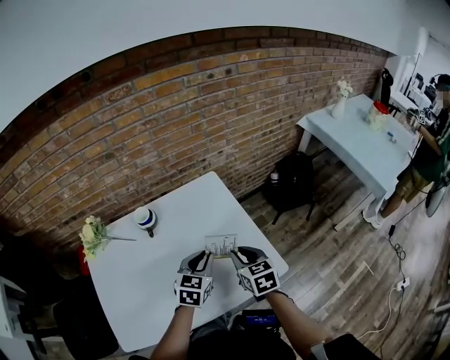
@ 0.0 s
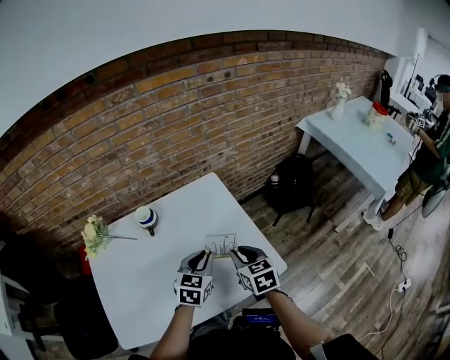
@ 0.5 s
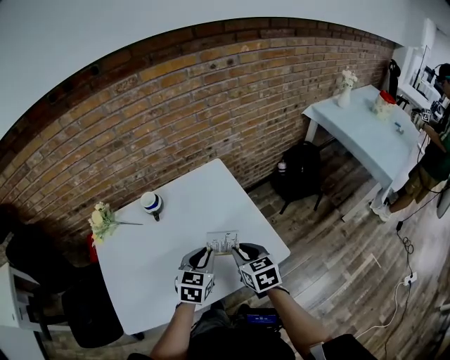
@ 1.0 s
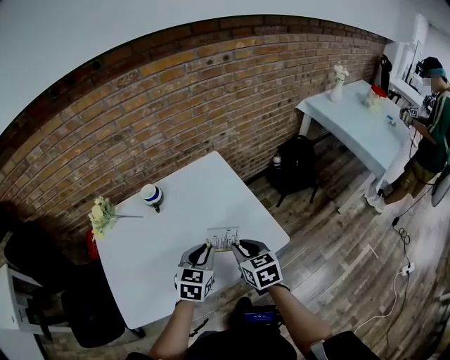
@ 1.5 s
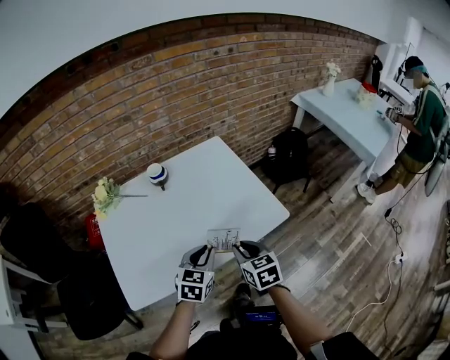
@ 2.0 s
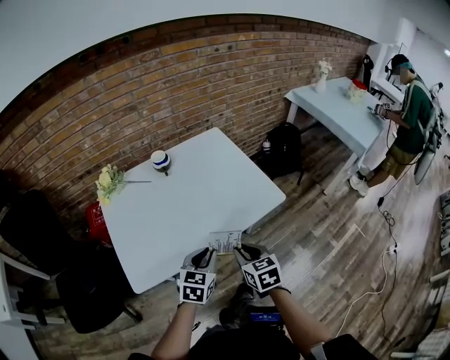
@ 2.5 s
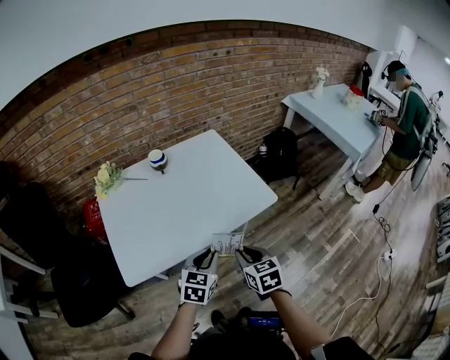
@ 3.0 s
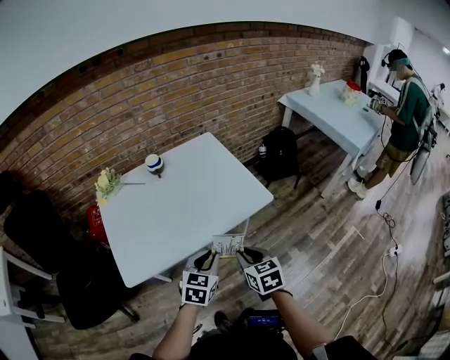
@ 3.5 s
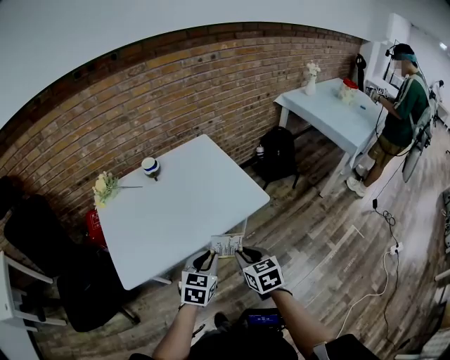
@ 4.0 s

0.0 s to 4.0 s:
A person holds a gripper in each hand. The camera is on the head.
0.0 to 2.0 s: The grippers both shift backward by some 20 cm.
2.0 to 4.0 s: Both grippers move backward and to the right, roughly 15 cm.

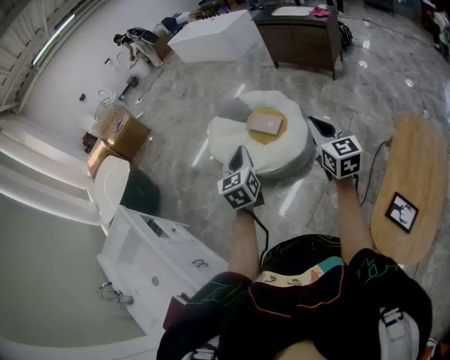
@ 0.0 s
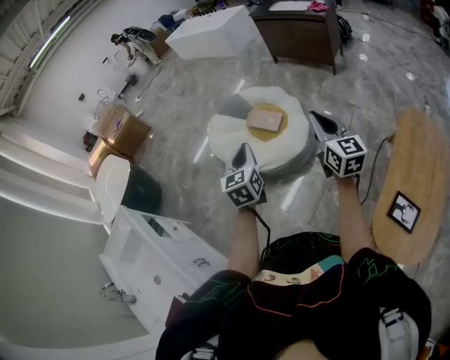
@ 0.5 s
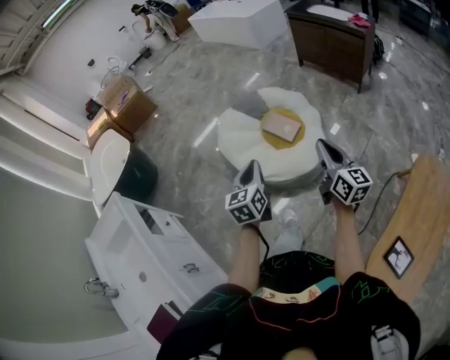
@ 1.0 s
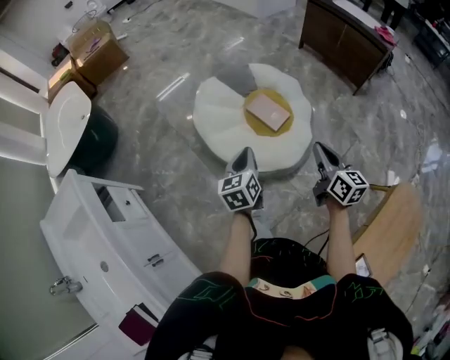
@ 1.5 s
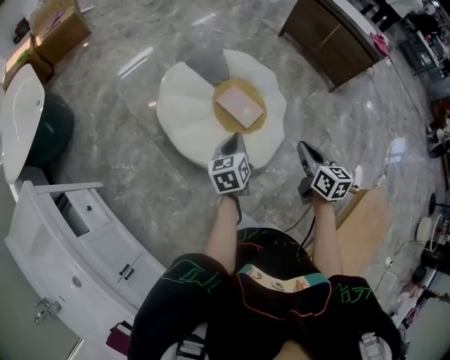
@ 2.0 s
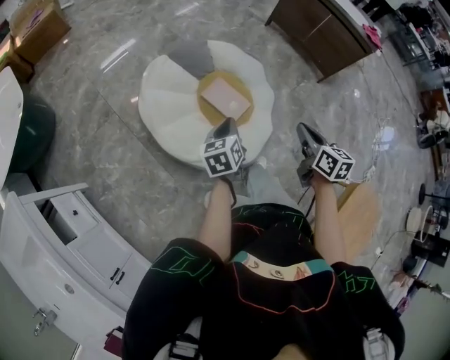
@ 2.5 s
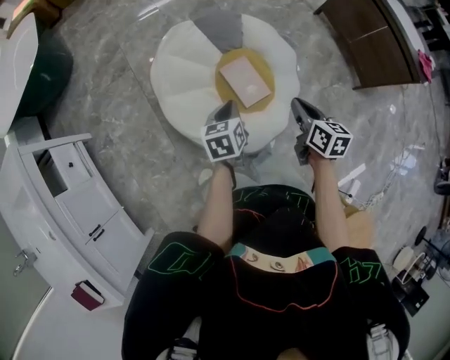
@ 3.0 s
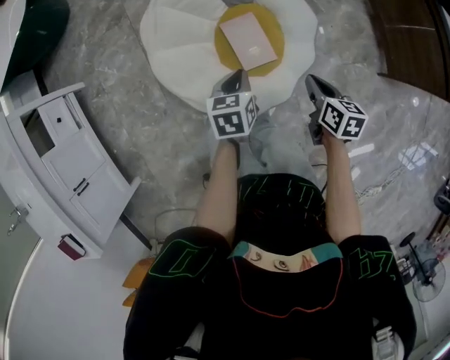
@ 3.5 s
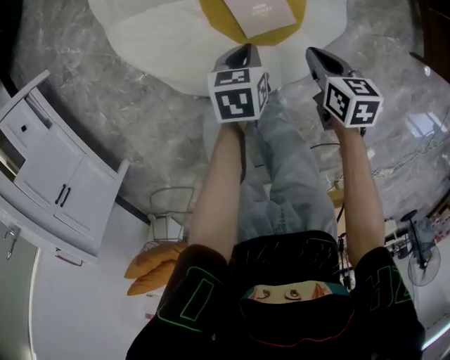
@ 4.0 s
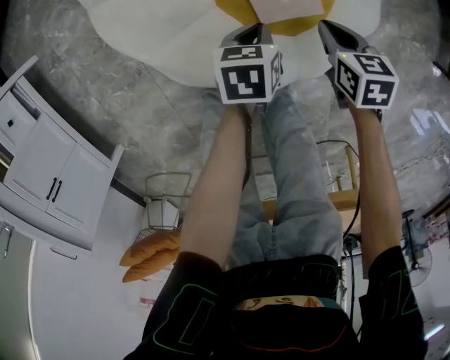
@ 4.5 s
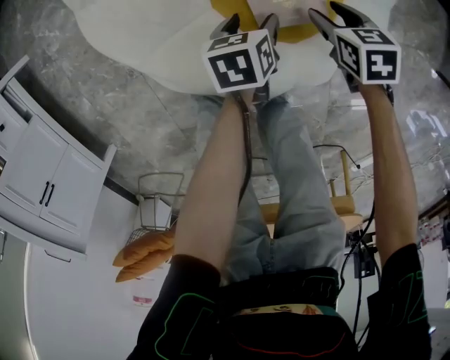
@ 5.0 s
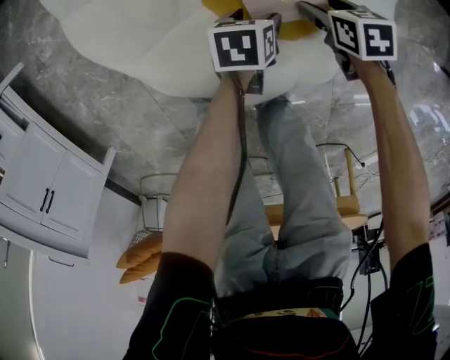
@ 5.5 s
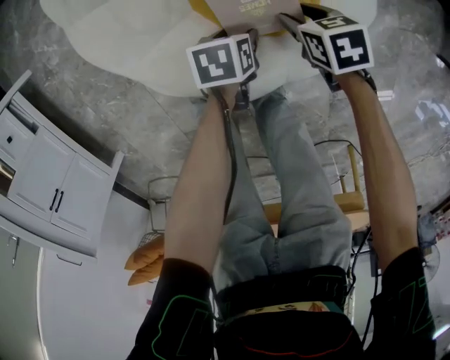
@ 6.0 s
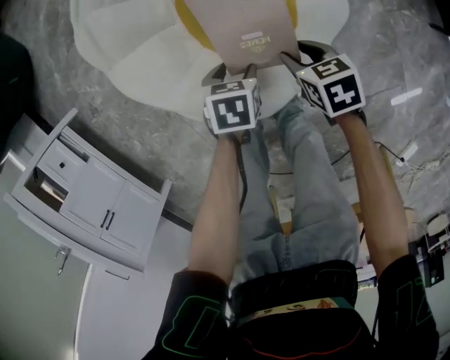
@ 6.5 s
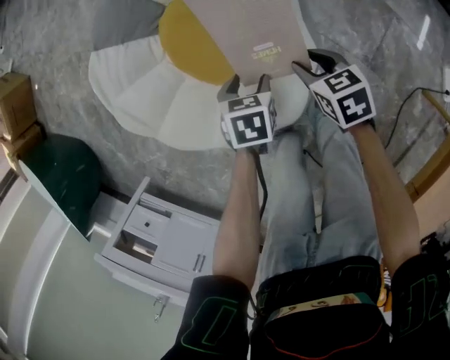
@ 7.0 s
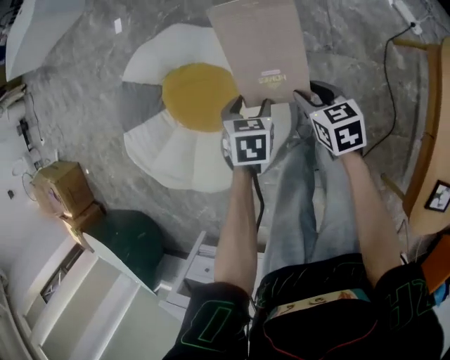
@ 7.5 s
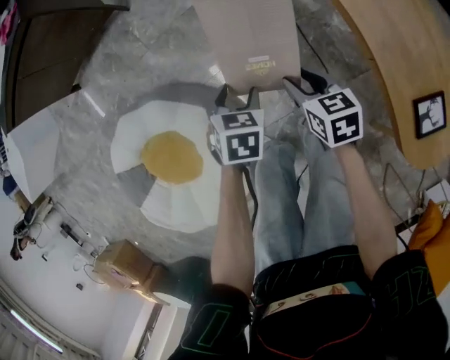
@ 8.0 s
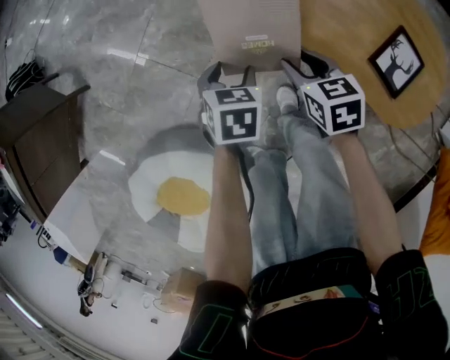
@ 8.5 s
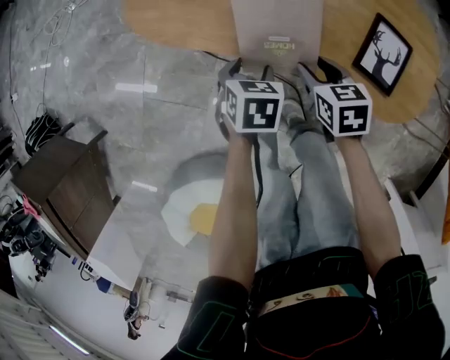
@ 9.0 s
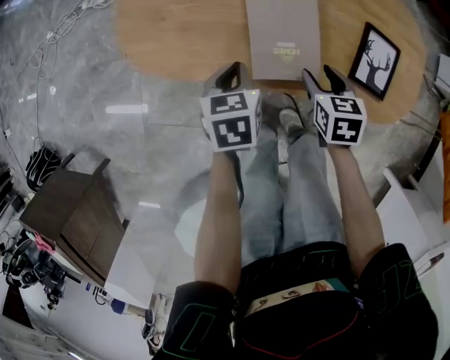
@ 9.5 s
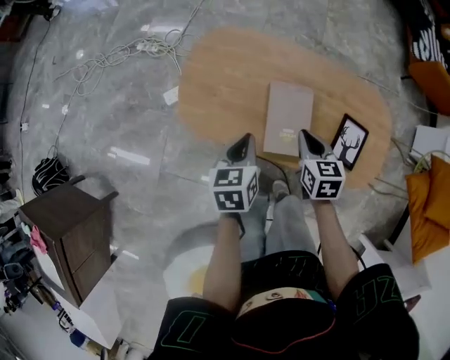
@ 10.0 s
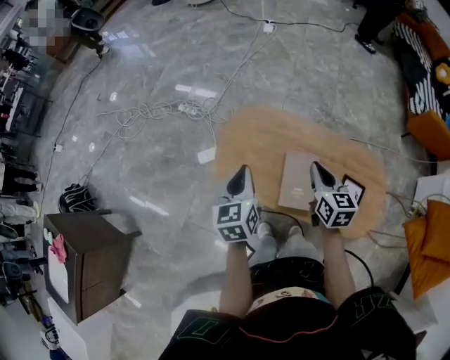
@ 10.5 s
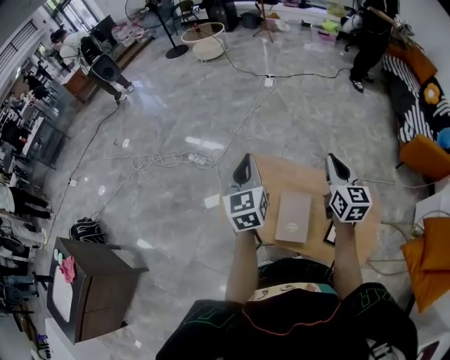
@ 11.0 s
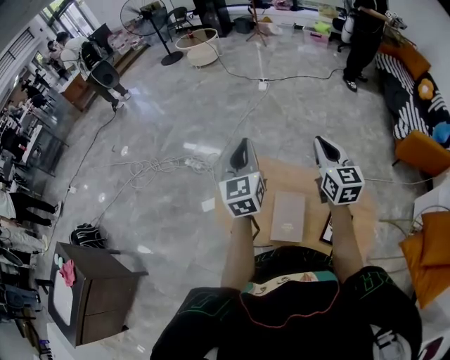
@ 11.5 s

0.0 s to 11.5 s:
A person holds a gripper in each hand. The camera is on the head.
0.0 to 2.0 s: Both grippers travel together forward and downward, about 40 cm. The right gripper changes its angle by approximately 30 degrees, while the left gripper changes its angle by approximately 30 degrees.
2.0 to 4.0 s: The grippers both shift downward by roughly 40 cm. The left gripper changes its angle by some 30 degrees. Meanwhile the right gripper changes its angle by some 40 degrees.
4.0 to 6.0 s: Both grippers travel together downward, roughly 20 cm. The right gripper changes its angle by roughly 20 degrees, and opens its fingers. The left gripper opens its fingers.
6.0 to 7.5 s: The left gripper moves upward, some 25 cm, and twists some 90 degrees clockwise, seen from behind; the right gripper shifts by some 35 cm, and turns by about 80 degrees.
7.5 to 9.5 s: Both grippers are carried about 70 cm. The left gripper turns by roughly 80 degrees, and closes. The right gripper swivels some 100 degrees.
9.5 to 11.5 s: The right gripper heads upward and forward, covering approximately 60 cm, points its fingers about 50 degrees further upward, and closes up, while the left gripper moves upward, some 50 cm, and tips its fingers upward by roughly 50 degrees.

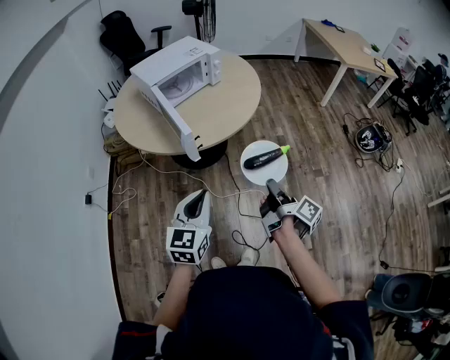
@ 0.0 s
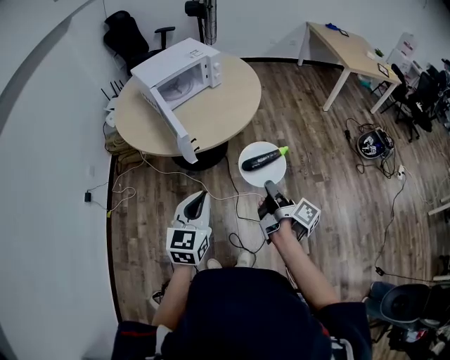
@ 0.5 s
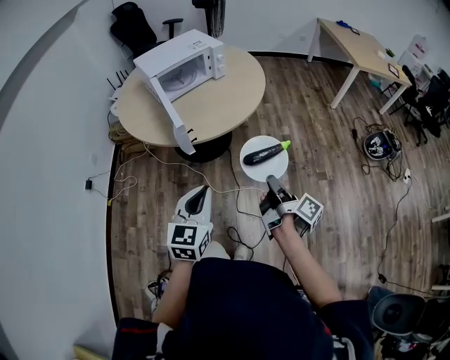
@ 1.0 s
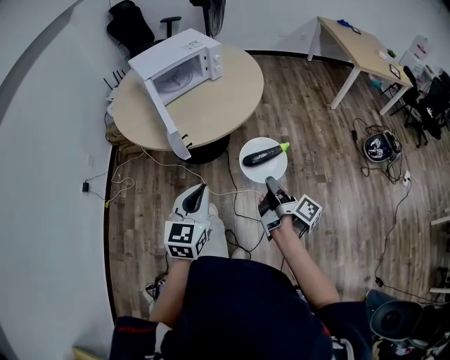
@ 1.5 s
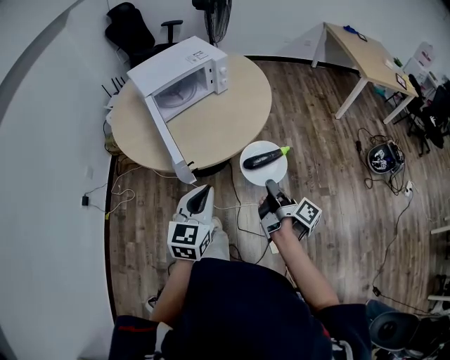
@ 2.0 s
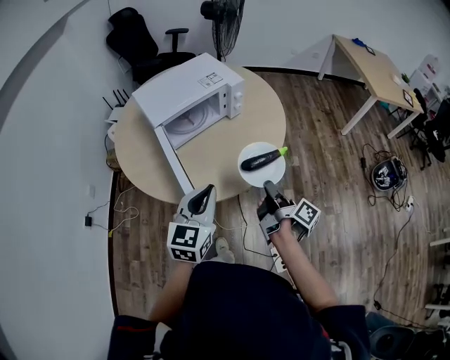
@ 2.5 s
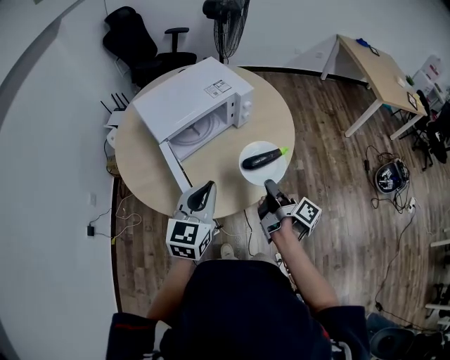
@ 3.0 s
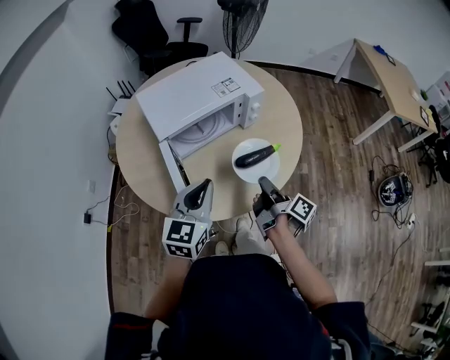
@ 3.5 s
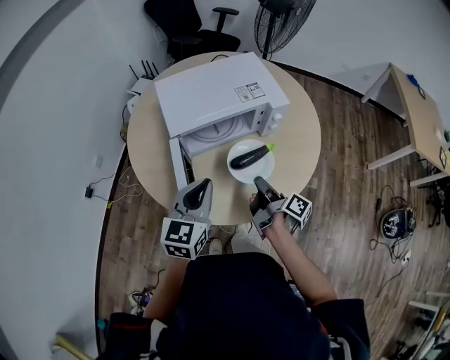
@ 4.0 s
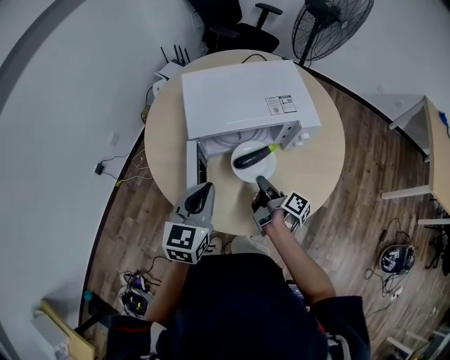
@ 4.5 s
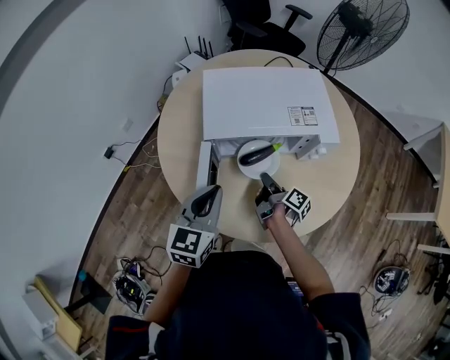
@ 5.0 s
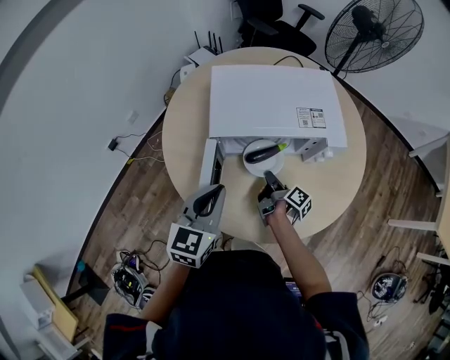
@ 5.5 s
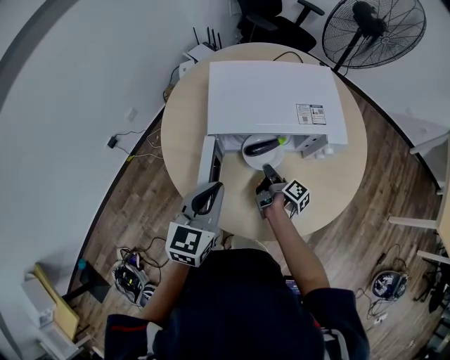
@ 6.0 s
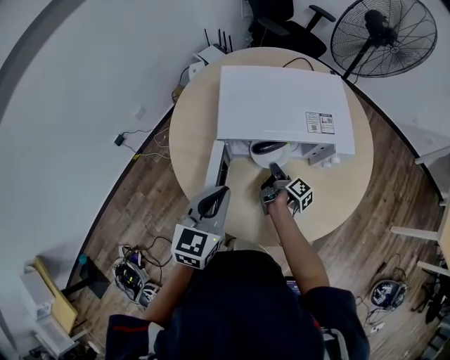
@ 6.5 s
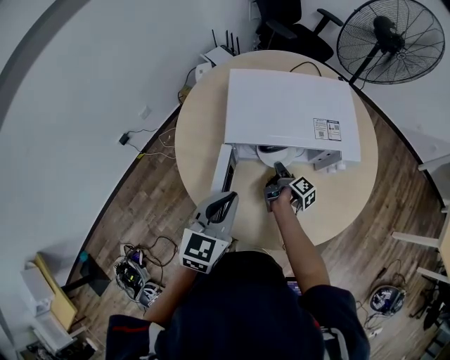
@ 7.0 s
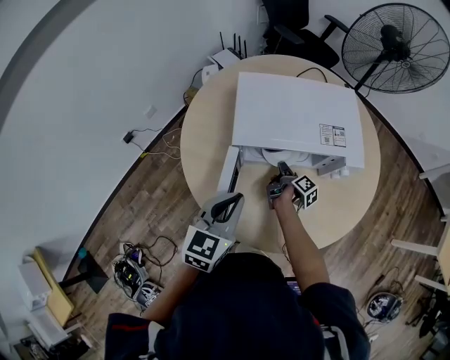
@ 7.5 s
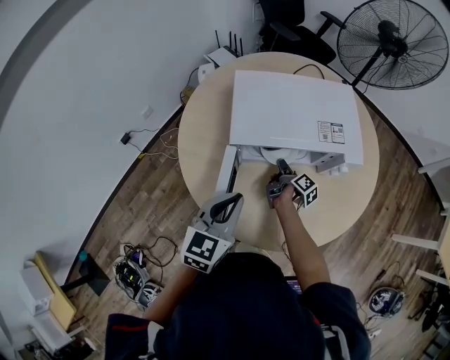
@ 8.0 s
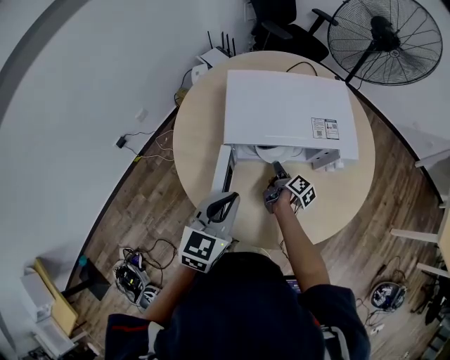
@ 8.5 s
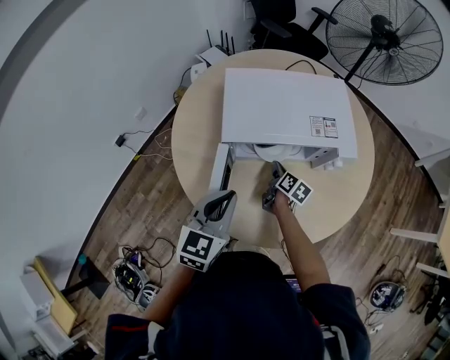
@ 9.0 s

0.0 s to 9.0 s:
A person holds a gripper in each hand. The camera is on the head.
0.0 to 2.0 s: The two grippers go some 15 cm forward.
2.0 to 4.5 s: The left gripper moves roughly 35 cm, and rotates approximately 30 degrees. Meanwhile the right gripper moves roughly 50 cm, and turns by approximately 30 degrees.
4.5 to 7.0 s: The right gripper is displaced forward and downward by approximately 15 cm.
7.0 to 9.0 s: The right gripper swivels about 40 degrees.

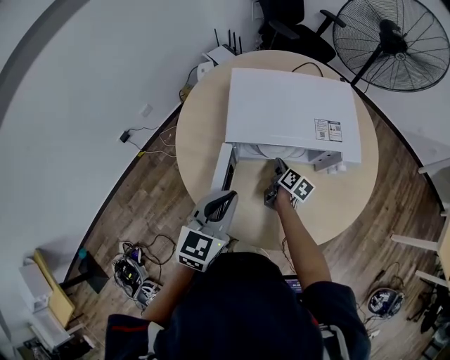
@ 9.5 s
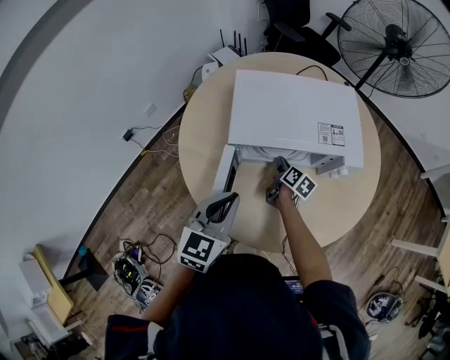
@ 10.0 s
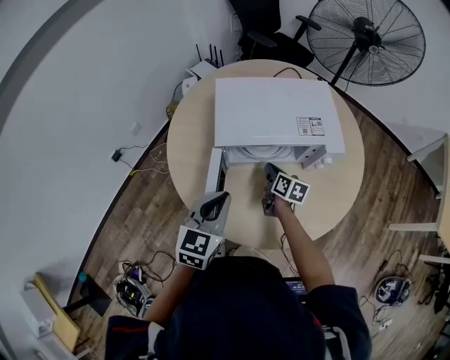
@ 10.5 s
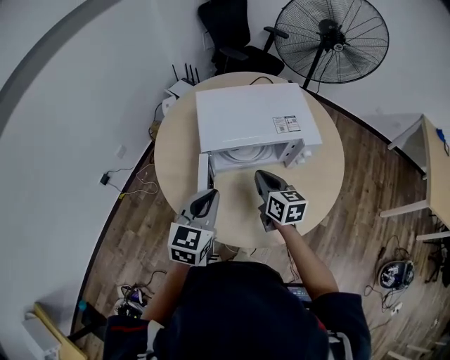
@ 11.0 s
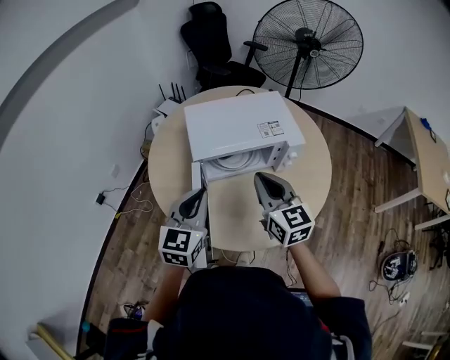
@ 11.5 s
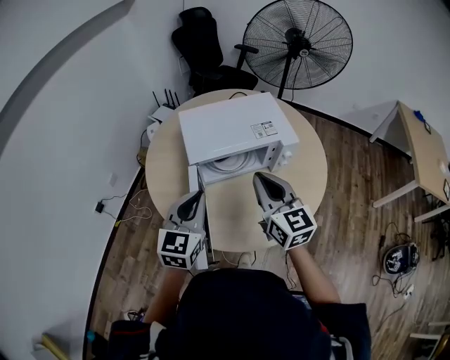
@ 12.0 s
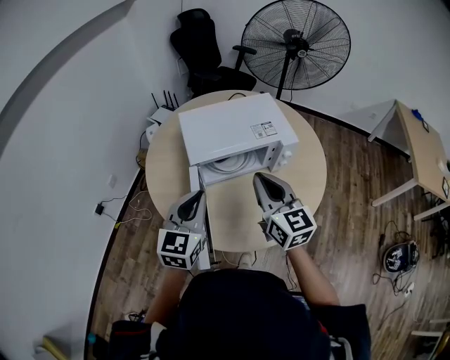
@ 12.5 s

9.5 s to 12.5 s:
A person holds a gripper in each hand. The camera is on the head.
9.5 to 11.0 s: The right gripper heads upward and backward, covering roughly 20 cm, and changes its angle by roughly 30 degrees.
11.0 to 12.5 s: The left gripper is displaced upward by approximately 5 cm, while the right gripper moves upward and backward, about 20 cm, and swivels approximately 20 degrees.
